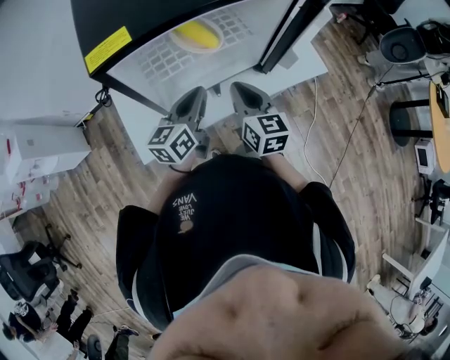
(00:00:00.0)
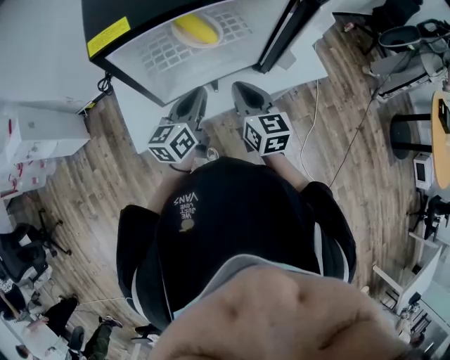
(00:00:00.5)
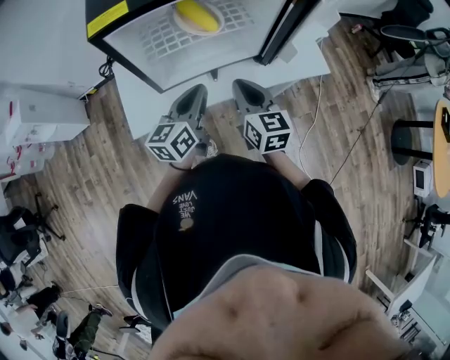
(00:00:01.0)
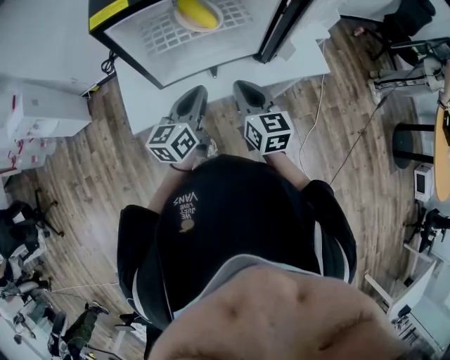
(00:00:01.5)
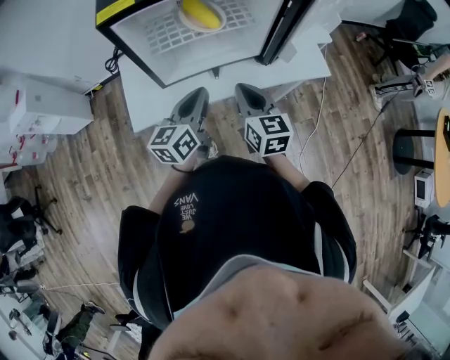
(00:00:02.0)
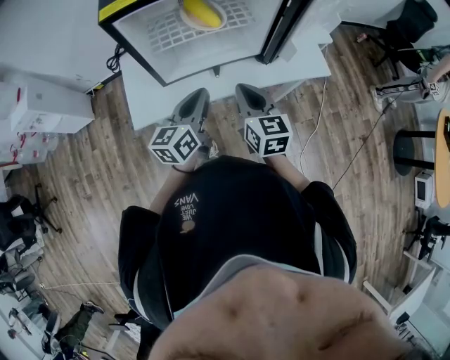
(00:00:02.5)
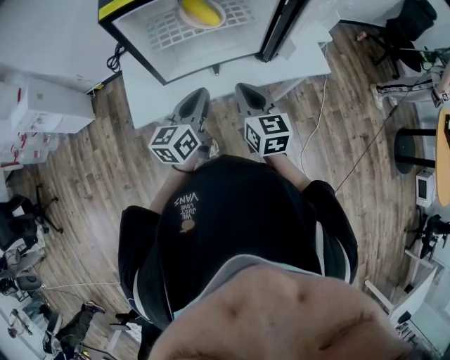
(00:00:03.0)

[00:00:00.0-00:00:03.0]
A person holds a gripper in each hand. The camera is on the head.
00:00:00.0 to 00:00:01.5: The grippers both shift backward by about 5 cm.
00:00:01.5 to 00:00:03.0: The grippers move only a little.

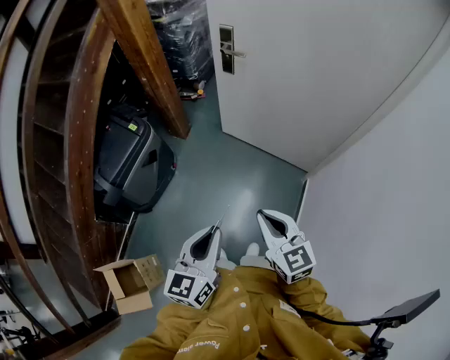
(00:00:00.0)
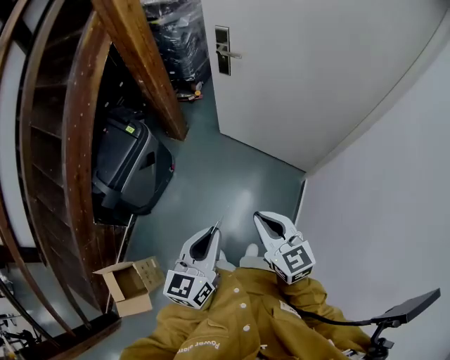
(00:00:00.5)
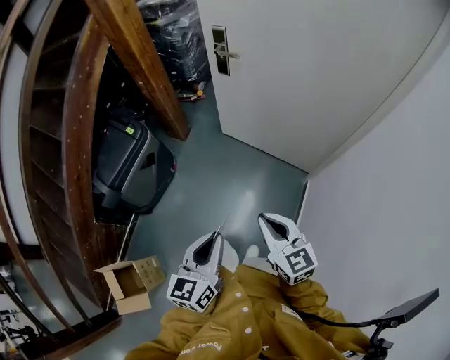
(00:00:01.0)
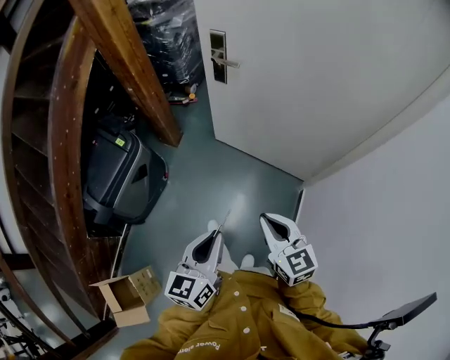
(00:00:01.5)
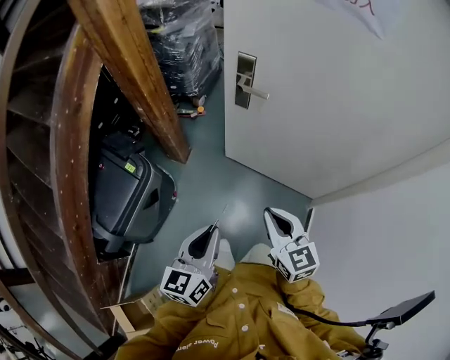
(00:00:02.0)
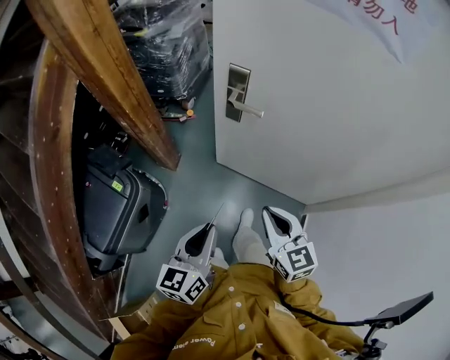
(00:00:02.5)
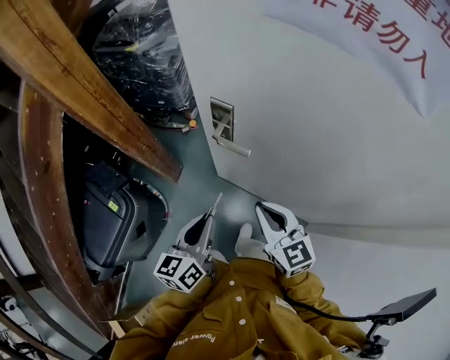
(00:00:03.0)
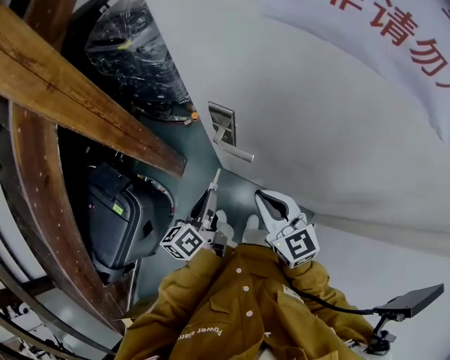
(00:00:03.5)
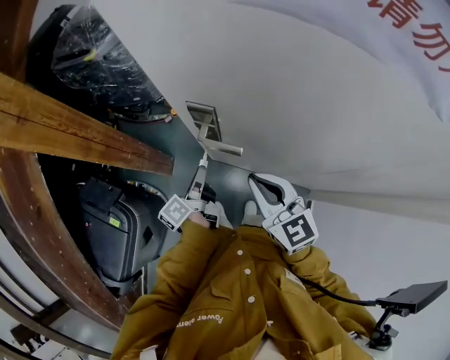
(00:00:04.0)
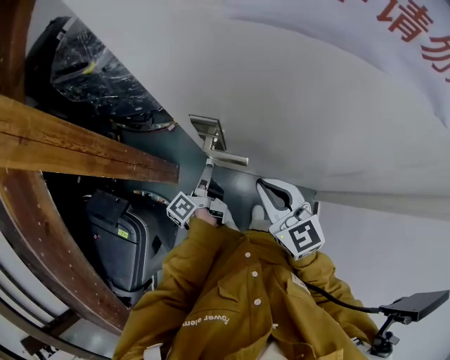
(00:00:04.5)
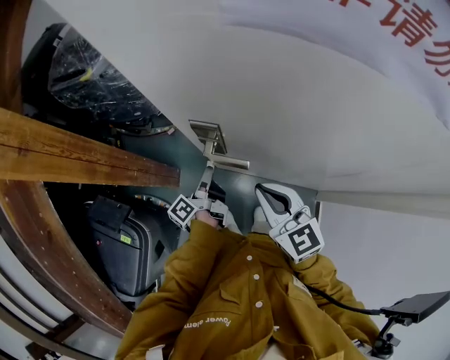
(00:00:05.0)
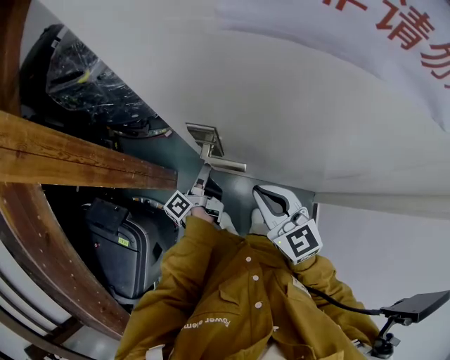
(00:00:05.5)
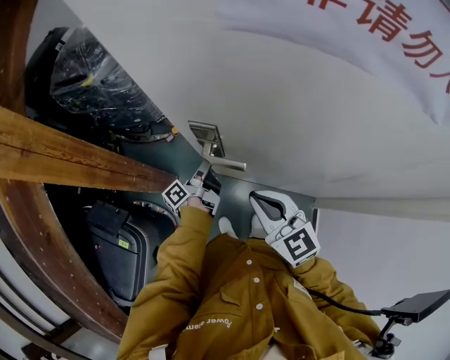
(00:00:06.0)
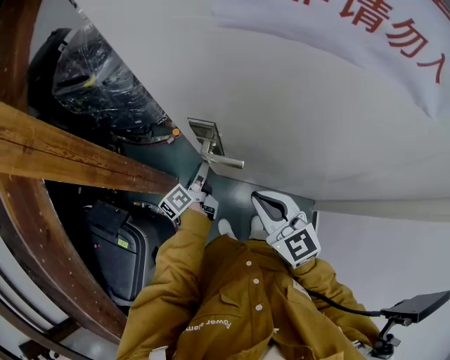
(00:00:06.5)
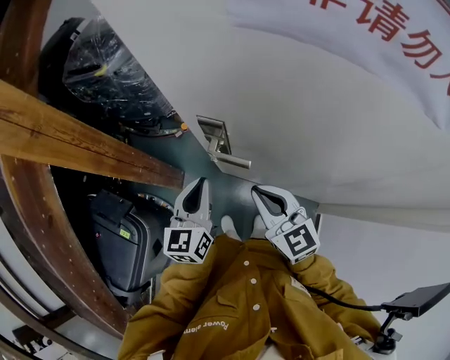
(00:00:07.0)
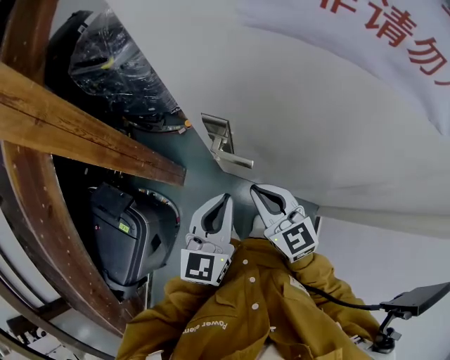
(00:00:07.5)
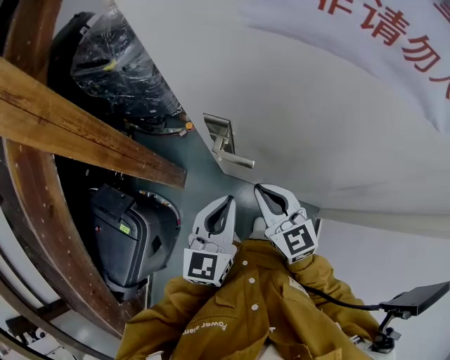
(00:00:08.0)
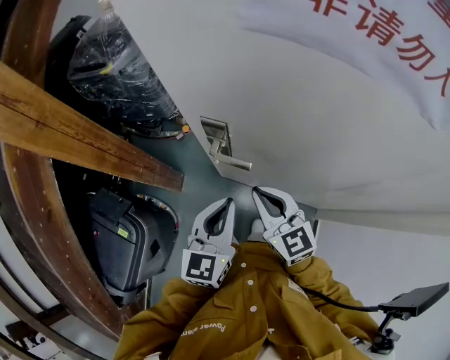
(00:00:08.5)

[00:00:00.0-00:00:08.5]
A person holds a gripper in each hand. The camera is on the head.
00:00:00.0 to 00:00:02.0: The two grippers go approximately 30 cm forward.
00:00:02.0 to 00:00:04.0: Both grippers move forward, about 40 cm. The left gripper rotates around the line of its fingers by approximately 50 degrees, counterclockwise from behind.
00:00:04.0 to 00:00:06.5: The left gripper heads forward, covering roughly 10 cm, and opens its fingers.
00:00:06.5 to 00:00:08.5: The left gripper shifts approximately 25 cm upward and backward, rotates around the line of its fingers by roughly 60 degrees, clockwise from behind, and closes.

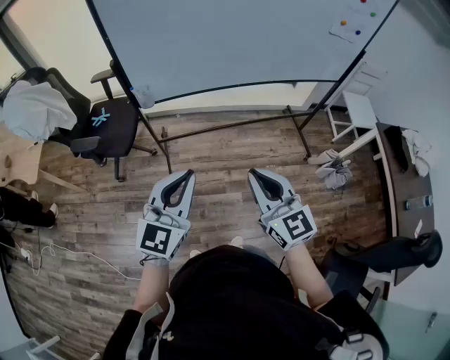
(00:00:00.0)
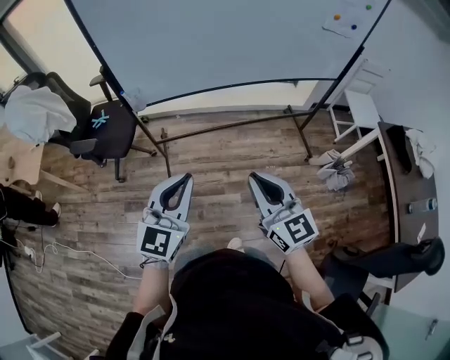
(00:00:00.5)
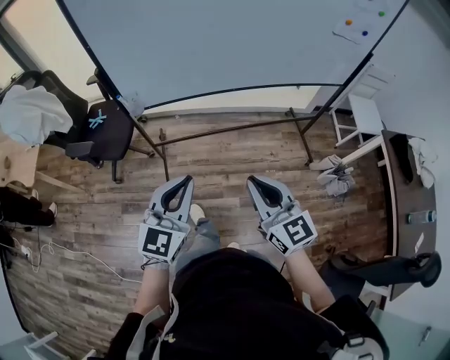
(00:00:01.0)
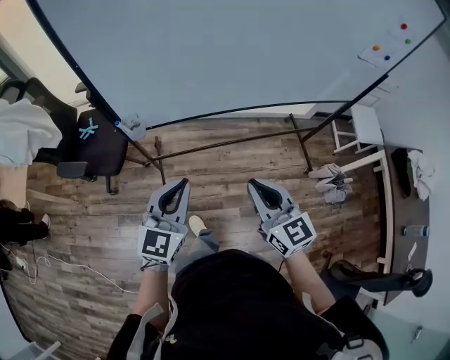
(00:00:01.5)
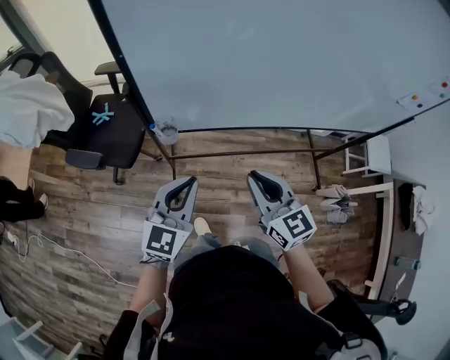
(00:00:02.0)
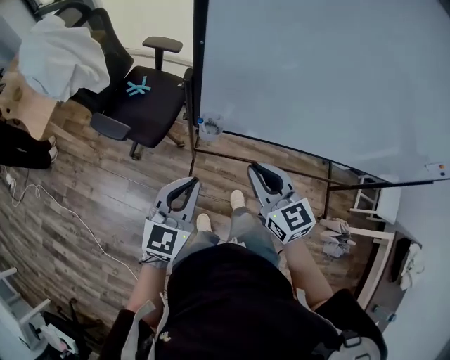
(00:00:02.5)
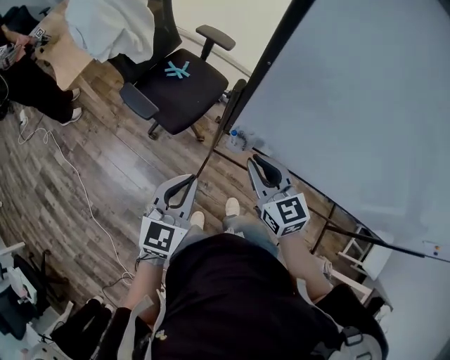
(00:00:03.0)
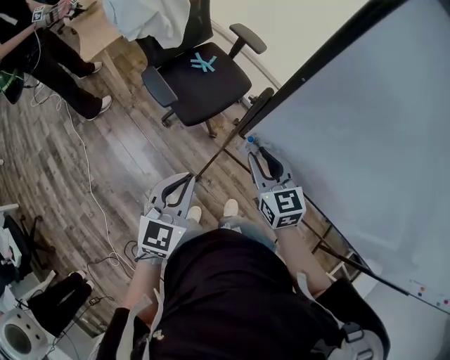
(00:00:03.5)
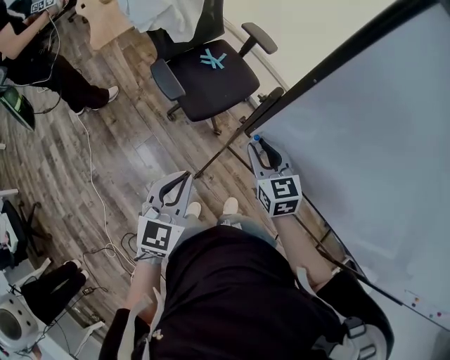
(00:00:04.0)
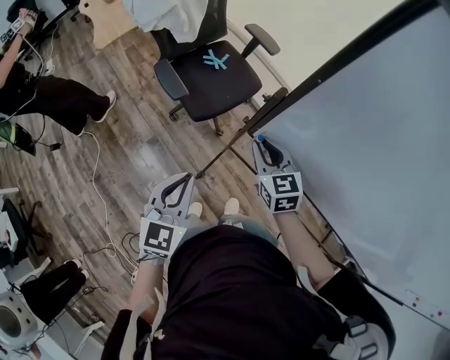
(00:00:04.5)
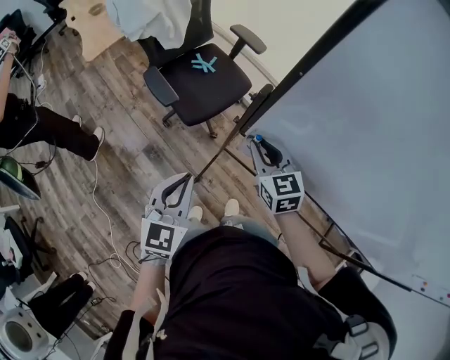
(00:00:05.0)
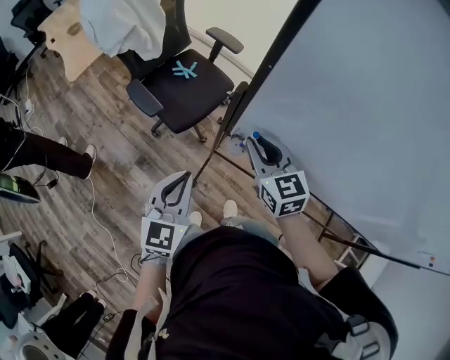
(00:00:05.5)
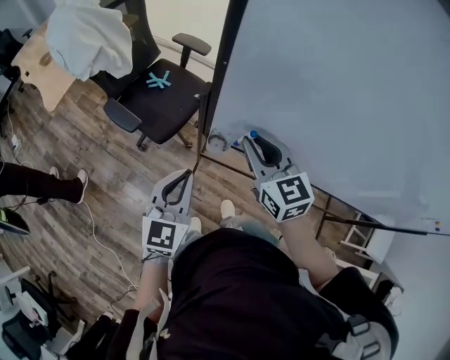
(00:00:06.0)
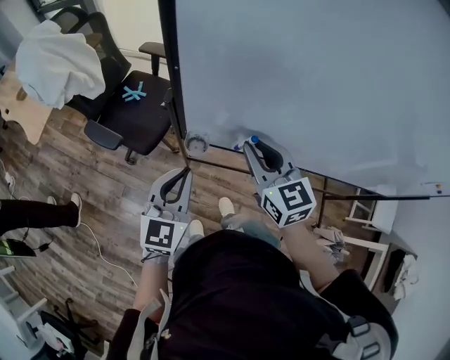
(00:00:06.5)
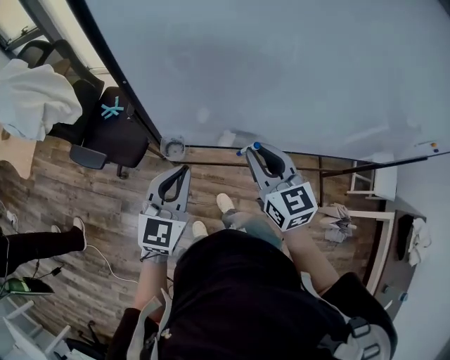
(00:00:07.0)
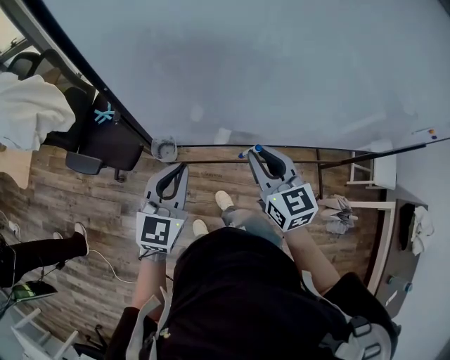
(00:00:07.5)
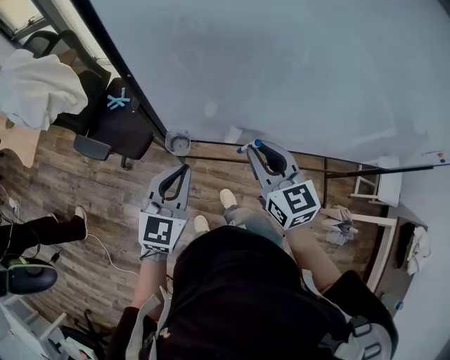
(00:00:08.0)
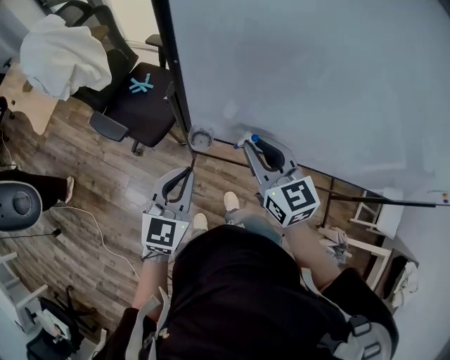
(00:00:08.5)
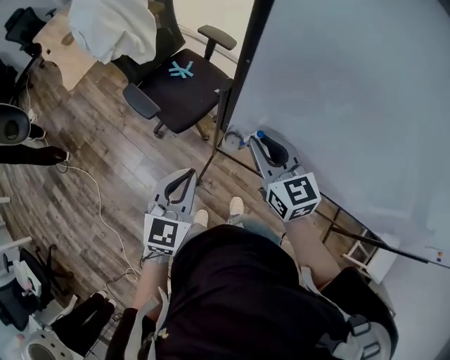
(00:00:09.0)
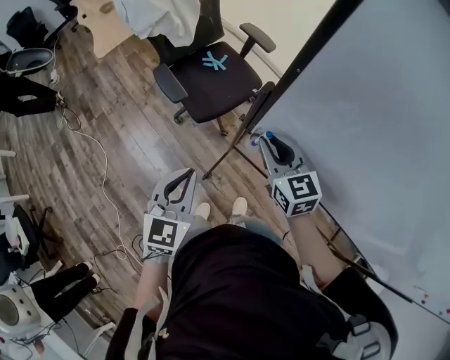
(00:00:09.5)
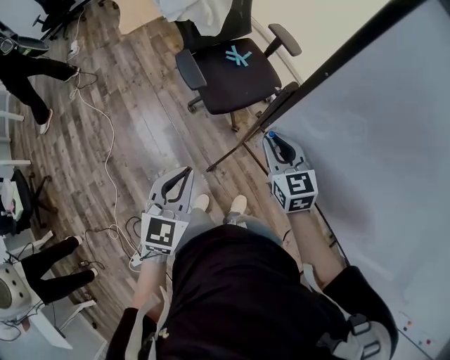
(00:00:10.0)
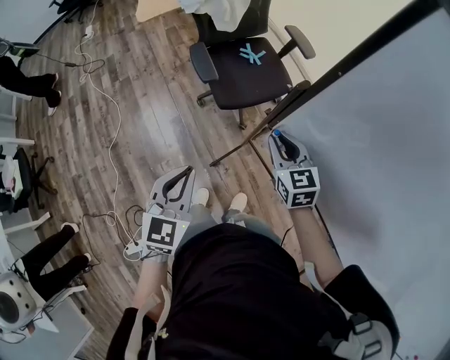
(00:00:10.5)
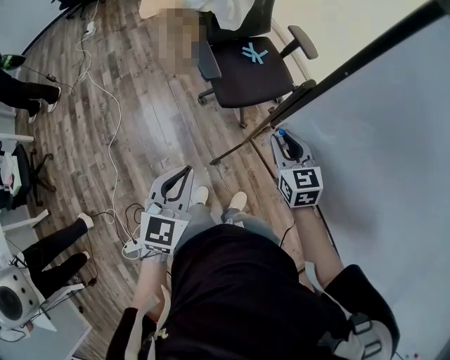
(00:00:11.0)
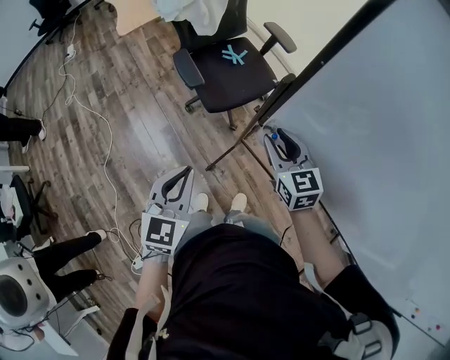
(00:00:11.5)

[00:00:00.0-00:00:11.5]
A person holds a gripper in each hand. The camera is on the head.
00:00:00.0 to 00:00:02.0: Both grippers travel together forward, roughly 30 cm.
00:00:02.0 to 00:00:04.0: The right gripper moves approximately 30 cm, rotates approximately 40 degrees, and opens its fingers, while the left gripper changes place by some 20 cm, and turns by roughly 50 degrees.
00:00:04.0 to 00:00:06.0: The right gripper goes about 15 cm upward and to the right; the left gripper moves to the right, about 10 cm.
00:00:06.0 to 00:00:07.5: Both grippers move to the right, approximately 15 cm. The right gripper swivels roughly 20 degrees; the left gripper changes its angle by about 20 degrees.
00:00:07.5 to 00:00:09.5: The right gripper shifts by approximately 25 cm, and changes its angle by roughly 40 degrees, while the left gripper ends up approximately 20 cm from where it was, and changes its angle by roughly 40 degrees.
00:00:09.5 to 00:00:11.5: The left gripper shifts by approximately 5 cm.

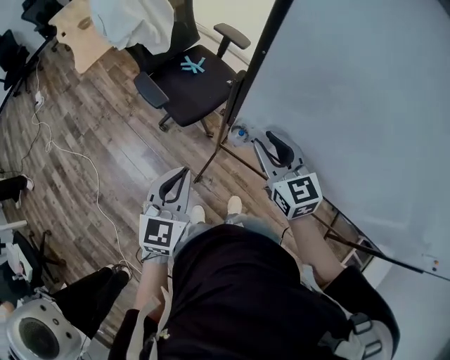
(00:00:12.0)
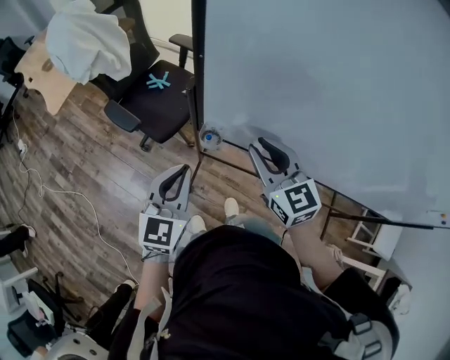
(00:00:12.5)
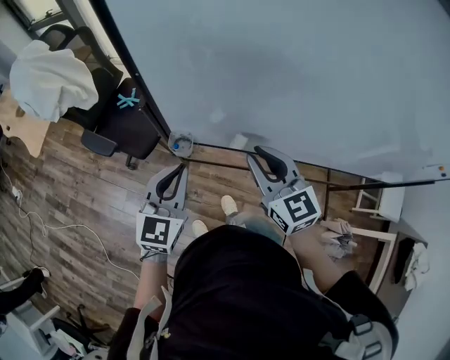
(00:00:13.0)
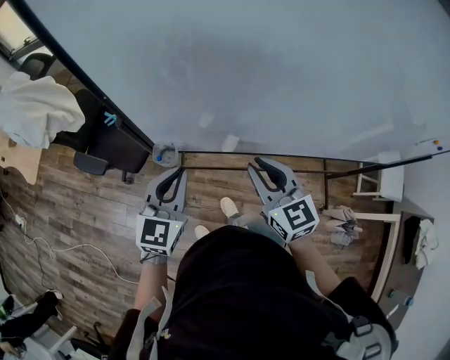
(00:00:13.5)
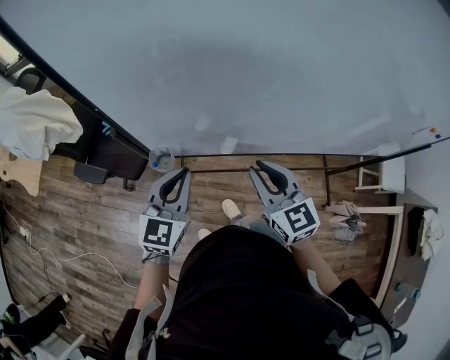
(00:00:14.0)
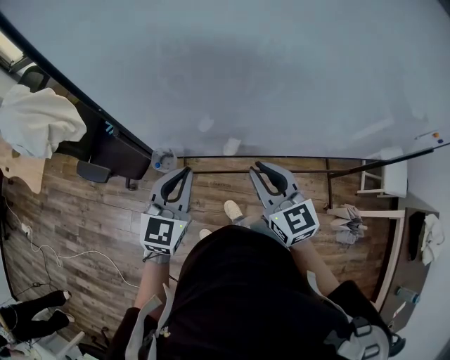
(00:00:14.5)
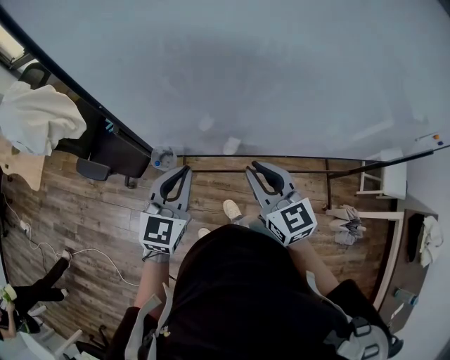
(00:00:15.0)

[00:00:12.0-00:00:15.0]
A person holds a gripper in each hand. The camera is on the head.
00:00:12.0 to 00:00:13.5: The left gripper shifts by about 20 cm, and changes its angle by approximately 30 degrees; the right gripper ends up about 20 cm from where it was, and changes its angle by some 30 degrees.
00:00:13.5 to 00:00:15.0: The grippers move only a little.
